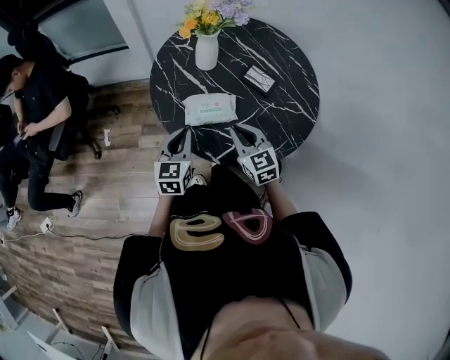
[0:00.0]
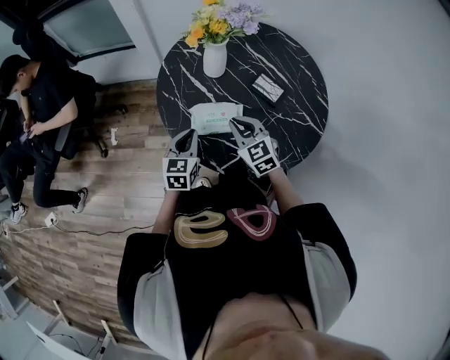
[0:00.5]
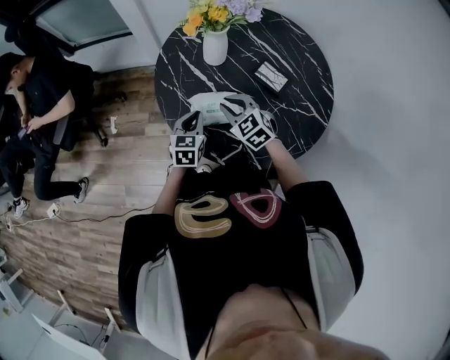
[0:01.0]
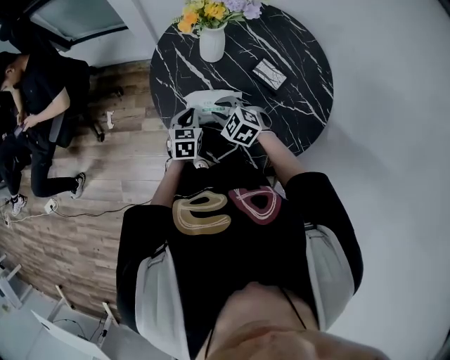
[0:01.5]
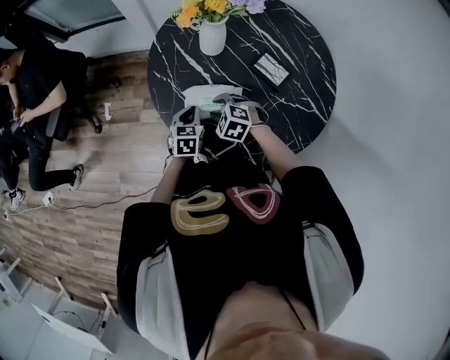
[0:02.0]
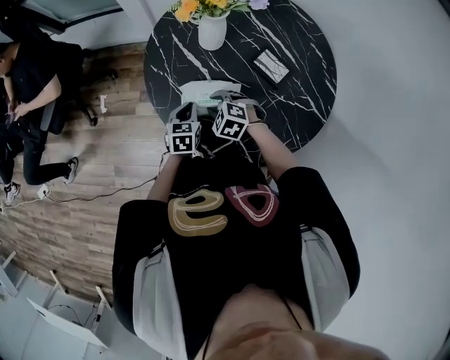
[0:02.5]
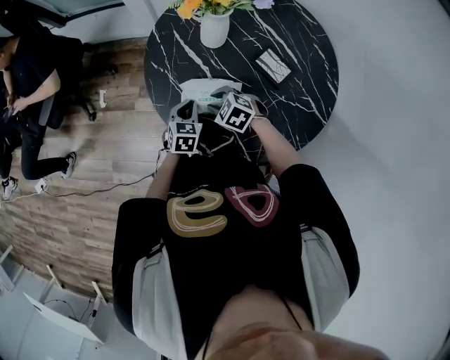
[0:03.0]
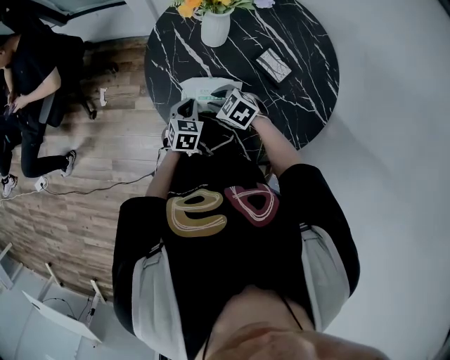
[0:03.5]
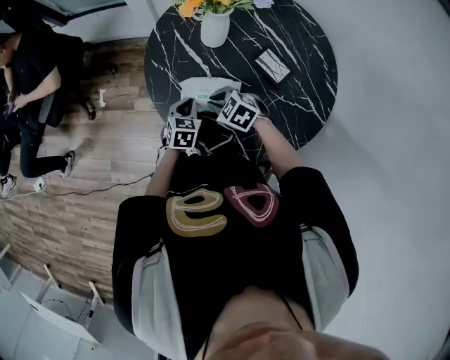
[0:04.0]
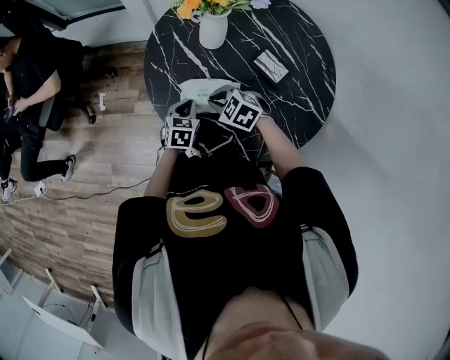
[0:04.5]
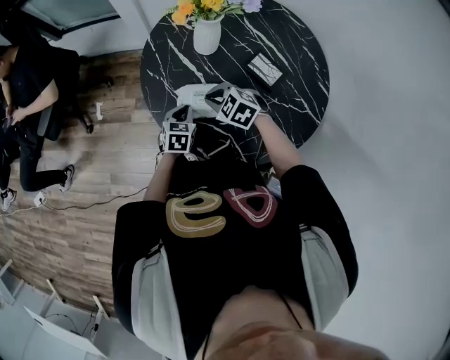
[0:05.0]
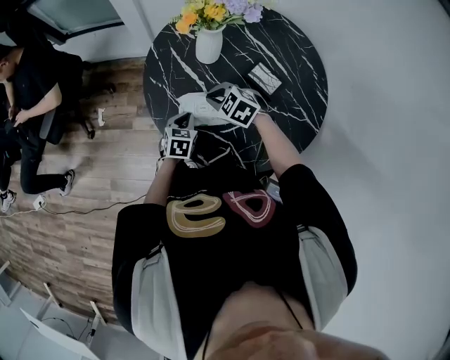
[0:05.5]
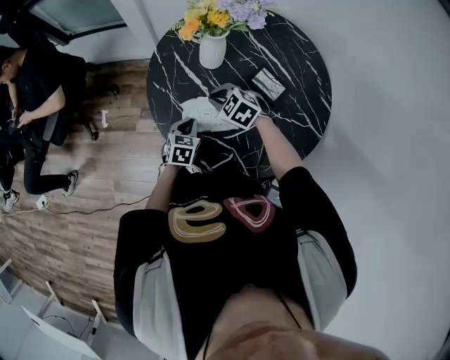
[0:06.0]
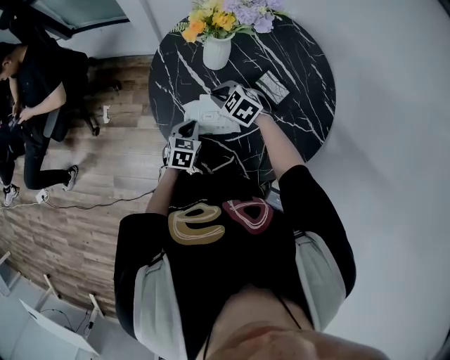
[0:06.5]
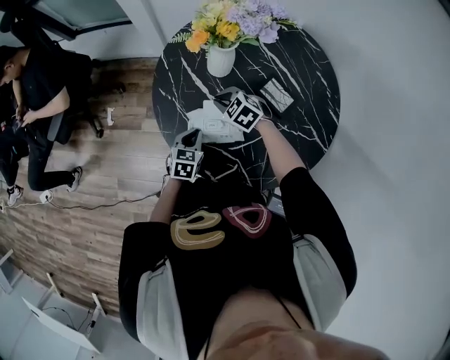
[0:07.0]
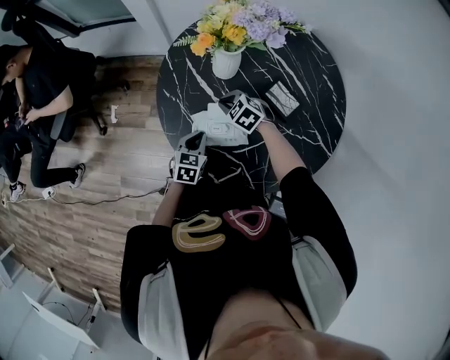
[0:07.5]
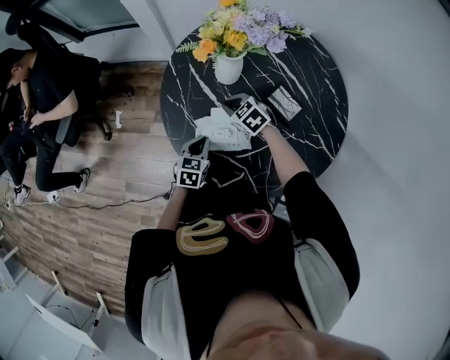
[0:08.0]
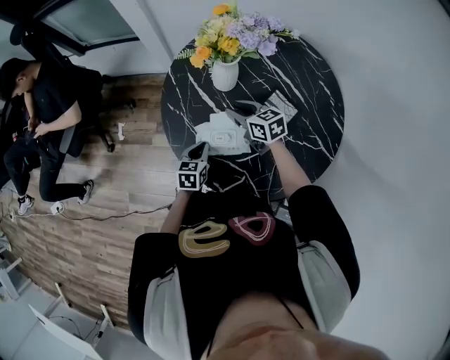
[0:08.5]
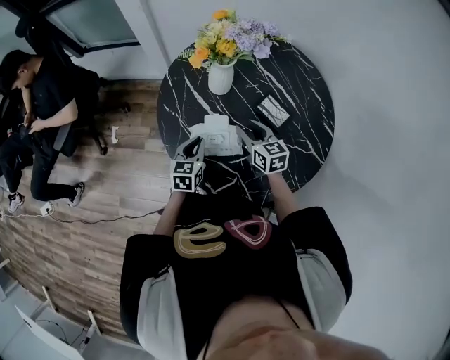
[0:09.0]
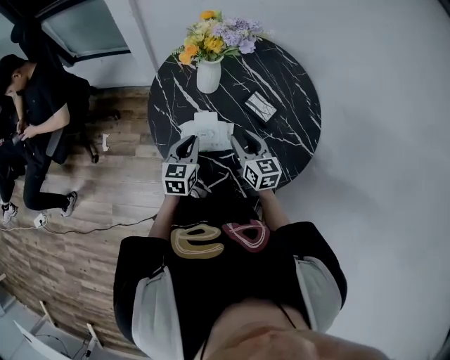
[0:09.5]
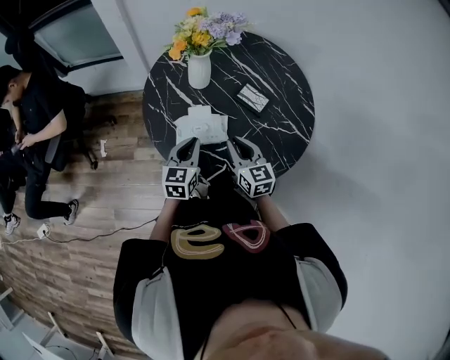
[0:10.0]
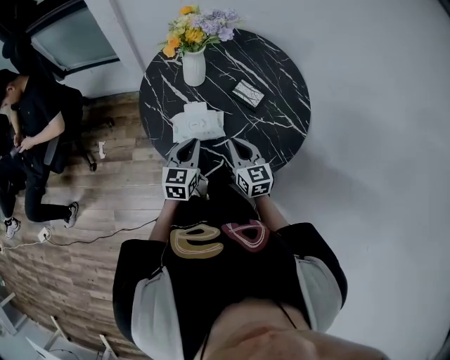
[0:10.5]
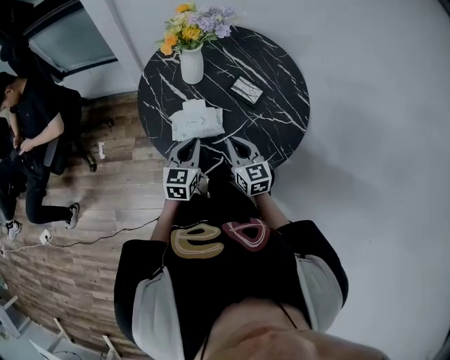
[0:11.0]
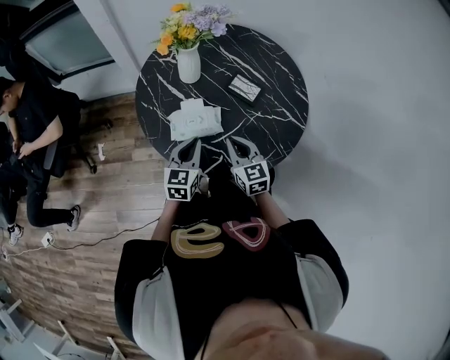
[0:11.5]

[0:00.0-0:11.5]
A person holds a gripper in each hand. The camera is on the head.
0:00.0 to 0:02.0: The two grippers go approximately 15 cm downward and forward. The left gripper changes its angle by about 20 degrees; the right gripper tilts its fingers some 40 degrees downward, and opens its fingers.
0:02.0 to 0:04.0: The right gripper closes.
0:04.0 to 0:06.0: The right gripper is displaced forward by about 5 cm.
0:06.0 to 0:07.5: The right gripper heads downward, covering about 5 cm.
0:07.5 to 0:09.5: The left gripper goes roughly 10 cm upward, and changes its angle by about 20 degrees; the right gripper heads backward, upward and to the right, covering about 20 cm, tips its fingers upward by approximately 30 degrees, and opens up.
0:09.5 to 0:11.5: The grippers both shift backward by roughly 10 cm. The right gripper closes up.

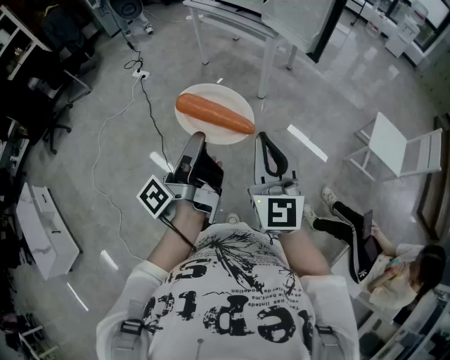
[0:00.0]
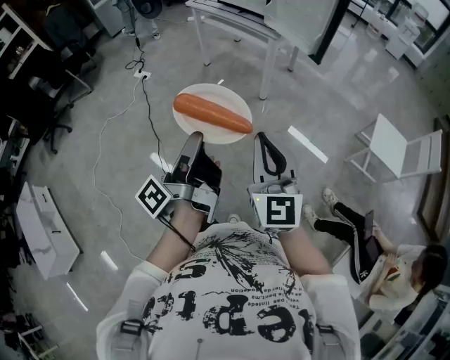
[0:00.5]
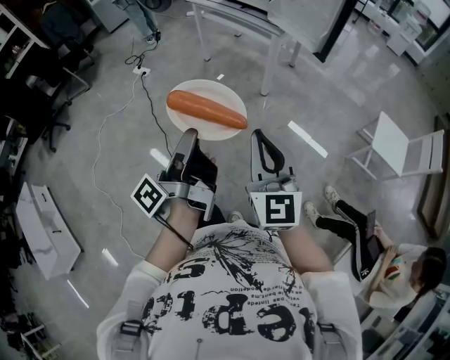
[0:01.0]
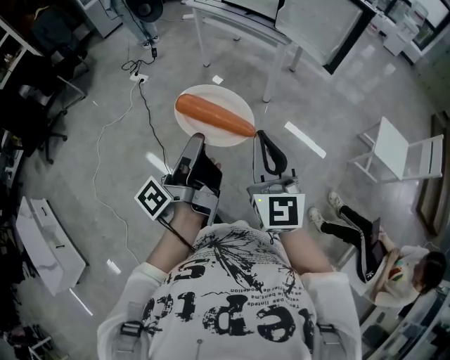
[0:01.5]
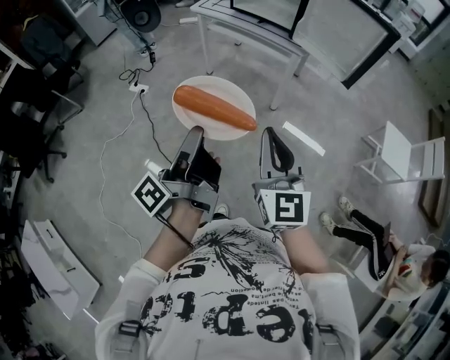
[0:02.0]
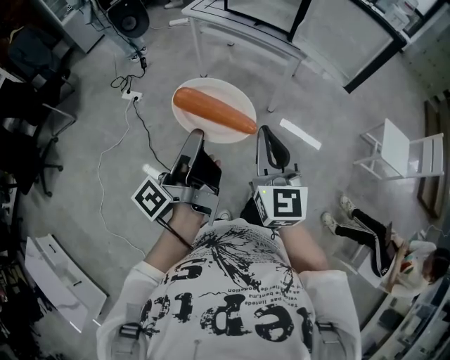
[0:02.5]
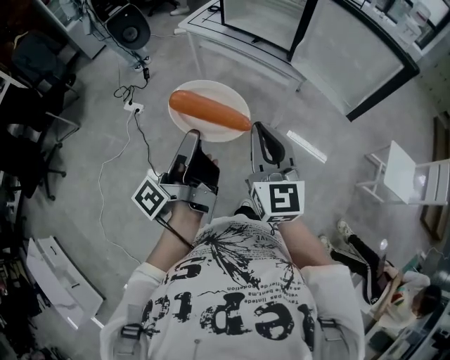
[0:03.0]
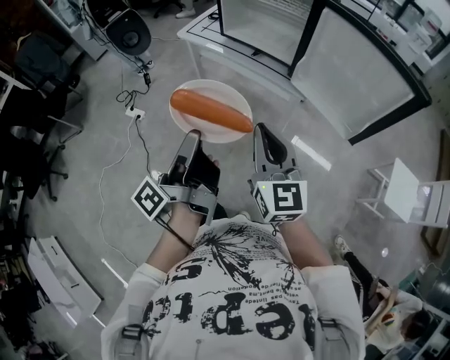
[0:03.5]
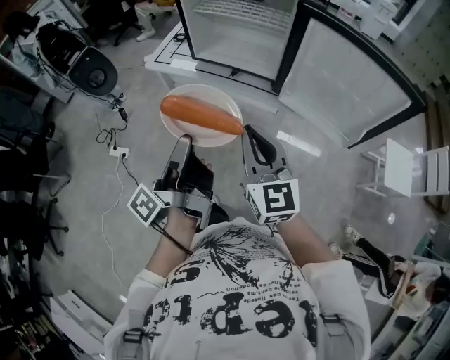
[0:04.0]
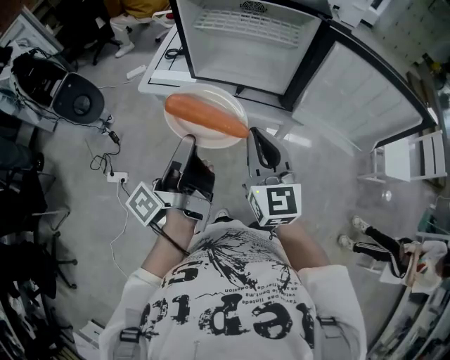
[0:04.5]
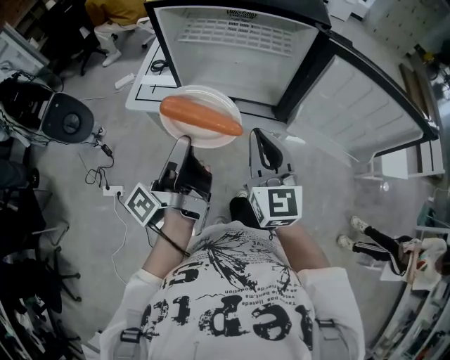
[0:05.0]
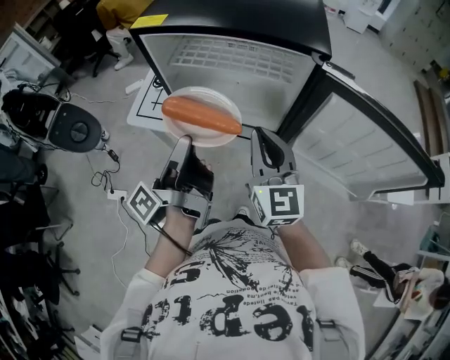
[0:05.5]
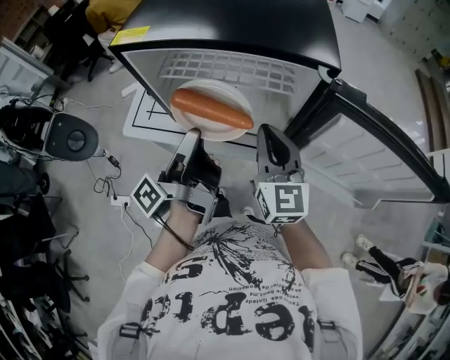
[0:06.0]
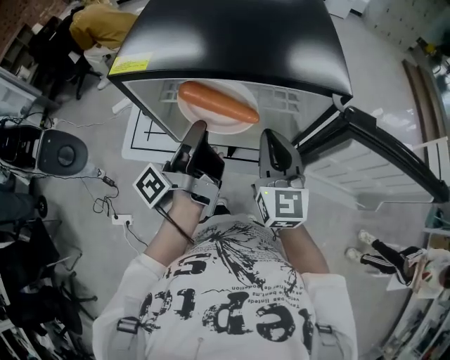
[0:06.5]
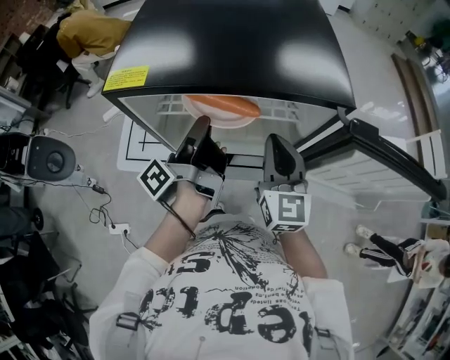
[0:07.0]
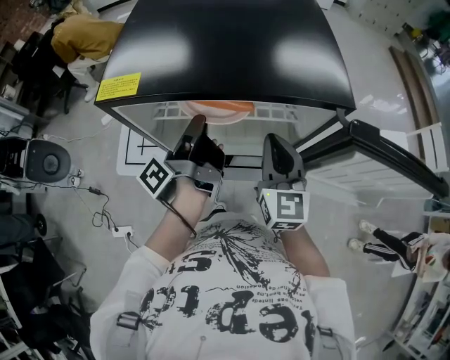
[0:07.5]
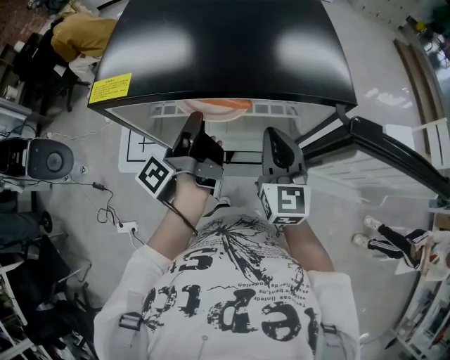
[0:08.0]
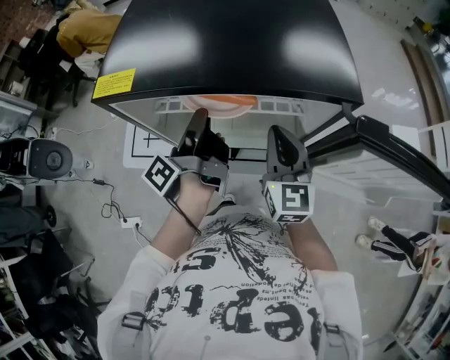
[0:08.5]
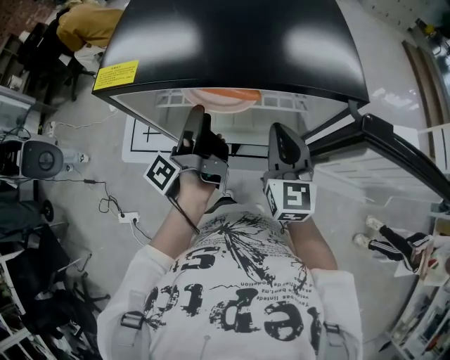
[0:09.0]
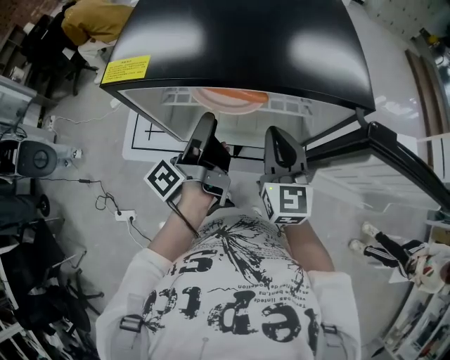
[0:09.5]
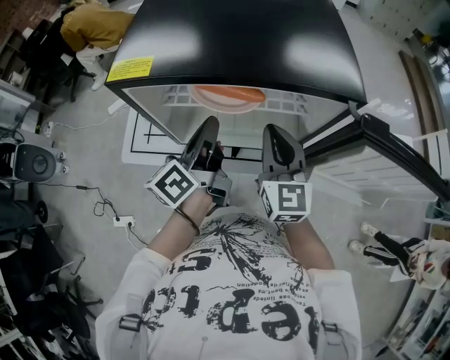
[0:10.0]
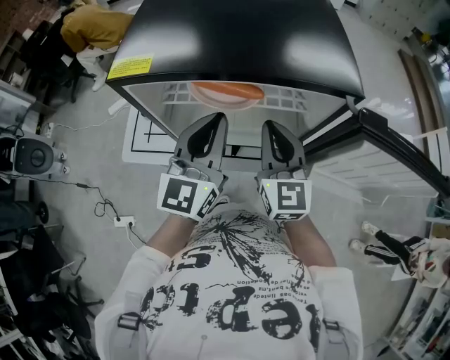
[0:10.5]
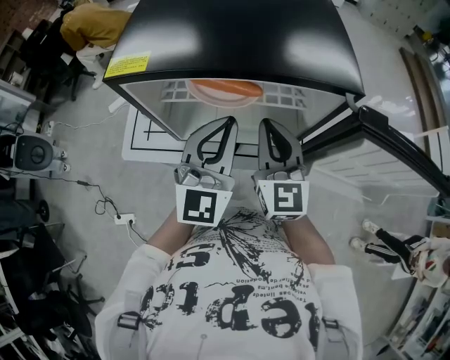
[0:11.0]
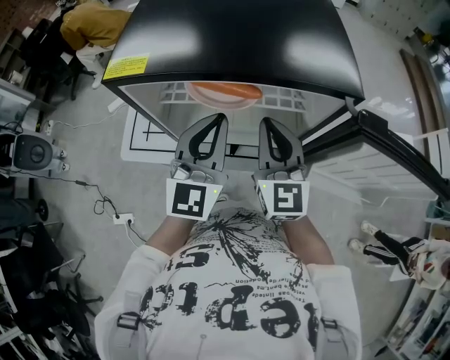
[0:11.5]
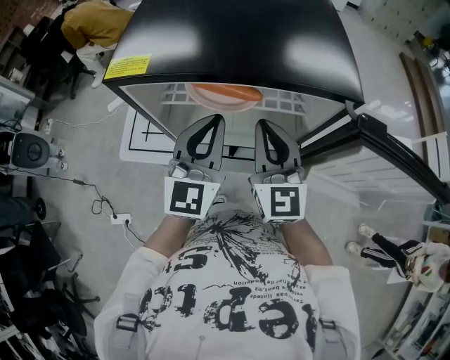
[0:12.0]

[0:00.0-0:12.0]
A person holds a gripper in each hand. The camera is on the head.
0:00.0 to 0:02.0: The right gripper moves some 30 cm.
0:02.0 to 0:04.0: The right gripper shifts by roughly 40 cm.
0:04.0 to 0:06.0: The right gripper ends up approximately 30 cm from where it was.
0:06.0 to 0:08.0: The right gripper moves about 5 cm.

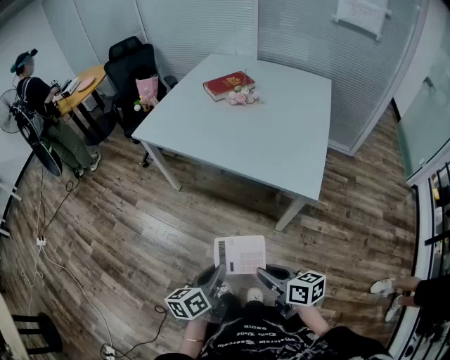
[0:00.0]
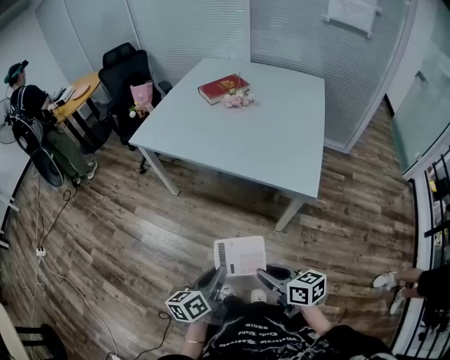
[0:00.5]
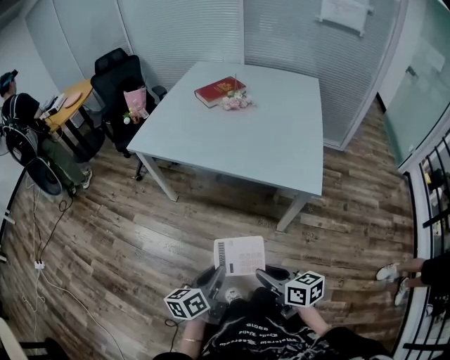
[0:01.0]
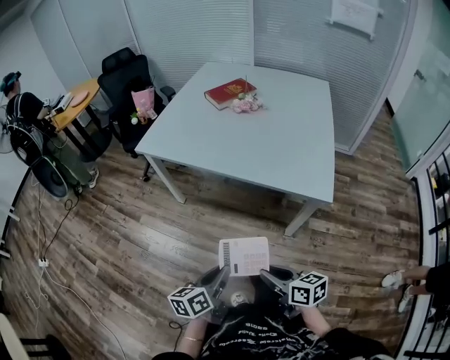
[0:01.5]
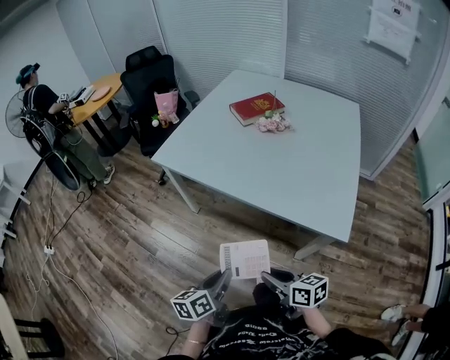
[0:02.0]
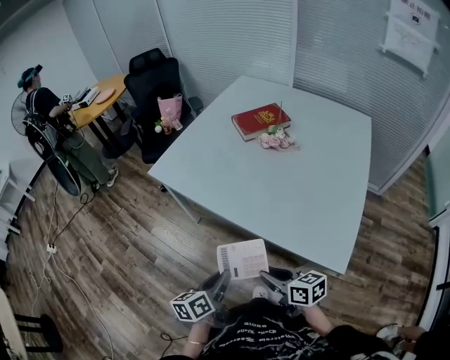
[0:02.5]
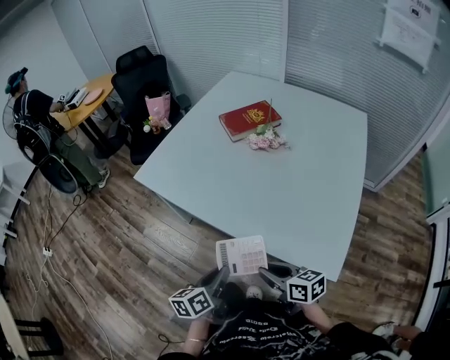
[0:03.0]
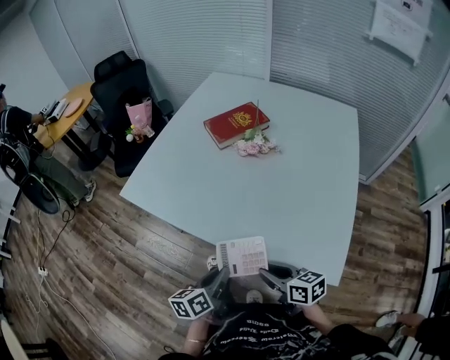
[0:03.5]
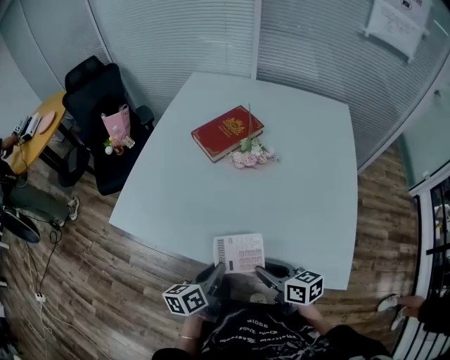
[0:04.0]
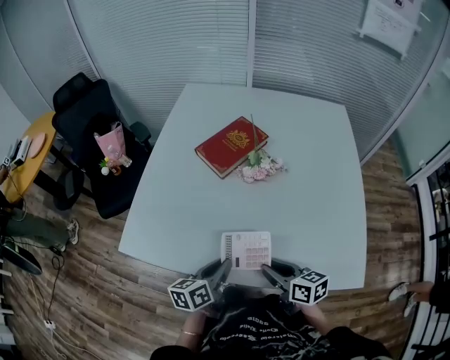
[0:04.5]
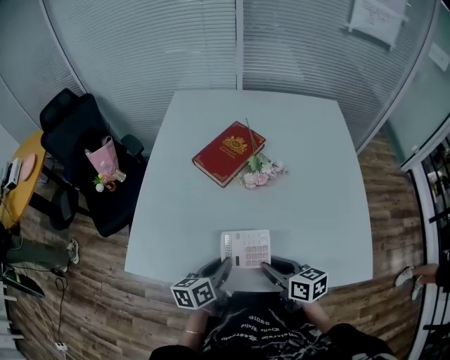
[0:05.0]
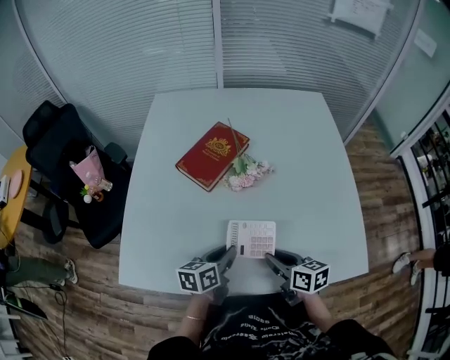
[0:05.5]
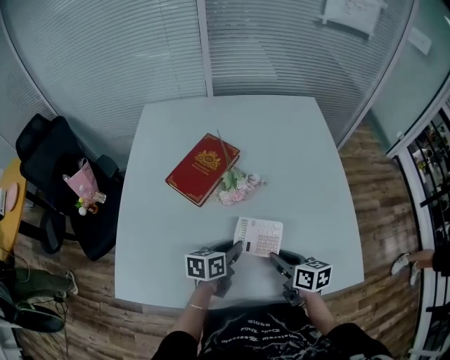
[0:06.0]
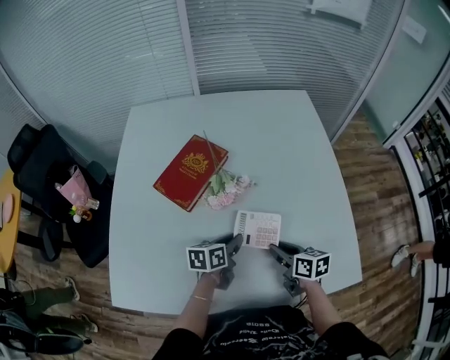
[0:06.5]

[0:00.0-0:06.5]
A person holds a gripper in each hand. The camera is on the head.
0:00.0 to 0:02.0: The grippers both shift forward by some 15 cm.
0:02.0 to 0:04.5: The right gripper moves about 40 cm. Meanwhile the left gripper ends up some 40 cm from where it was, and turns by roughly 20 degrees.
0:04.5 to 0:06.5: Both grippers travel together forward and to the right, some 20 cm. The left gripper changes its angle by some 30 degrees. Meanwhile the right gripper swivels about 20 degrees.
